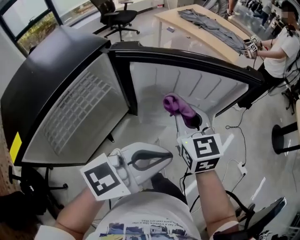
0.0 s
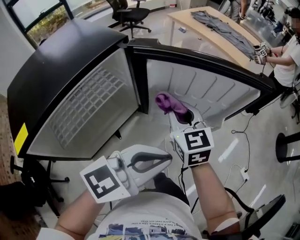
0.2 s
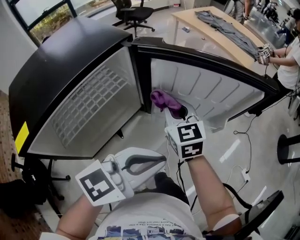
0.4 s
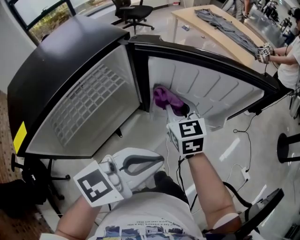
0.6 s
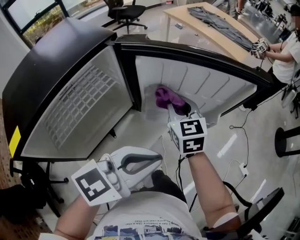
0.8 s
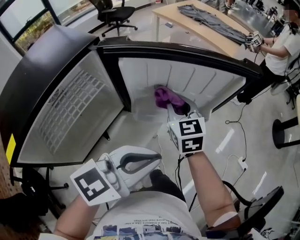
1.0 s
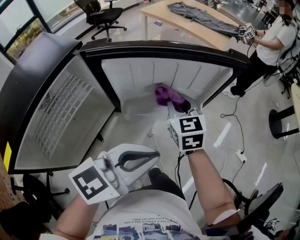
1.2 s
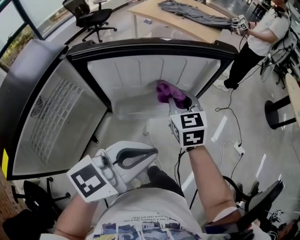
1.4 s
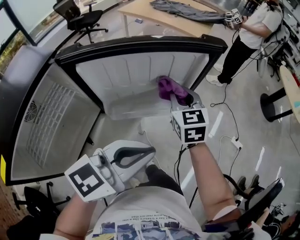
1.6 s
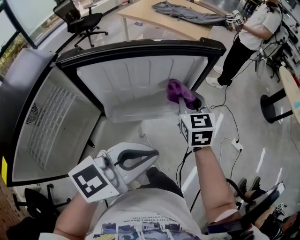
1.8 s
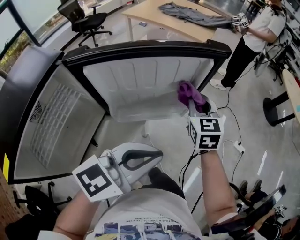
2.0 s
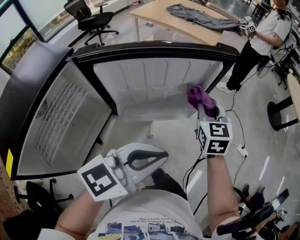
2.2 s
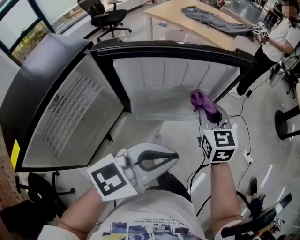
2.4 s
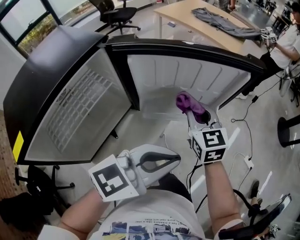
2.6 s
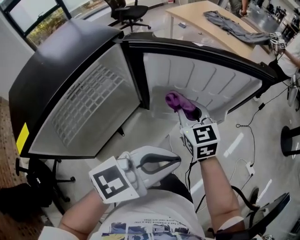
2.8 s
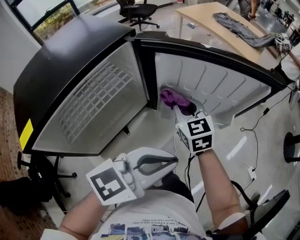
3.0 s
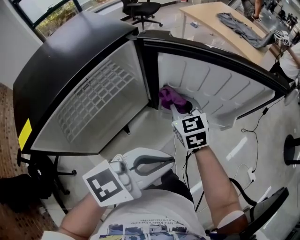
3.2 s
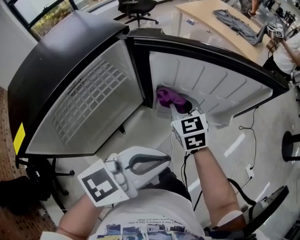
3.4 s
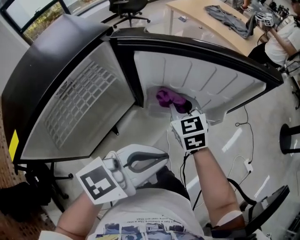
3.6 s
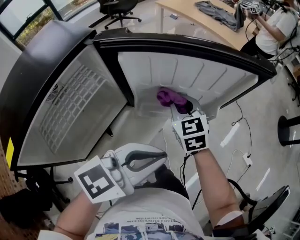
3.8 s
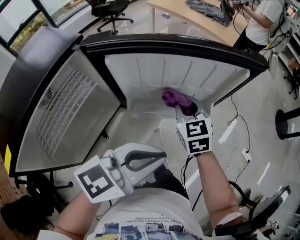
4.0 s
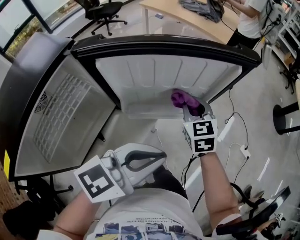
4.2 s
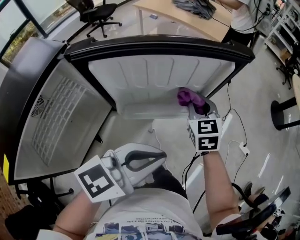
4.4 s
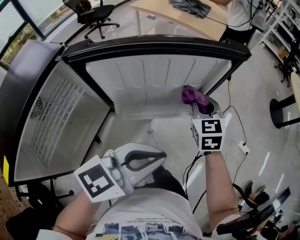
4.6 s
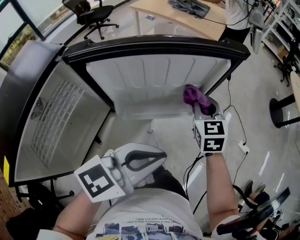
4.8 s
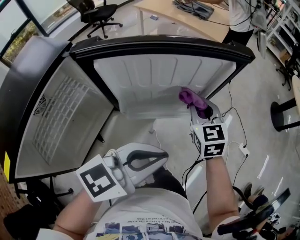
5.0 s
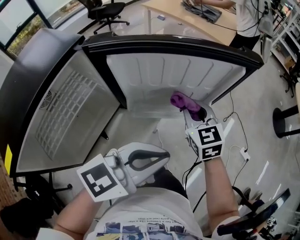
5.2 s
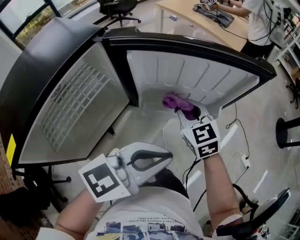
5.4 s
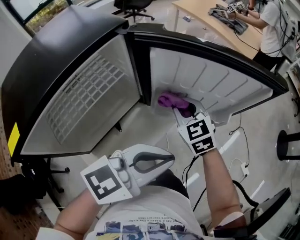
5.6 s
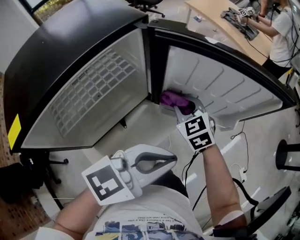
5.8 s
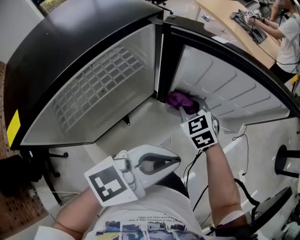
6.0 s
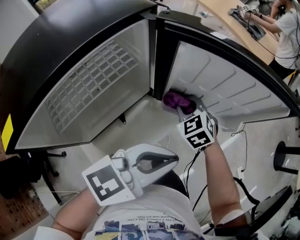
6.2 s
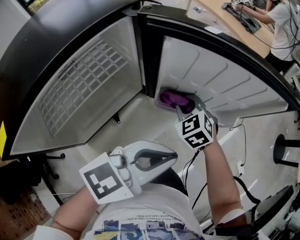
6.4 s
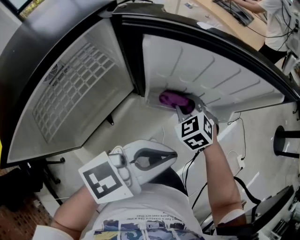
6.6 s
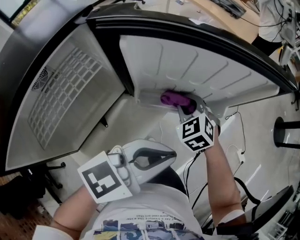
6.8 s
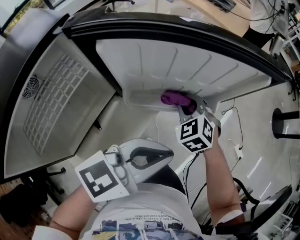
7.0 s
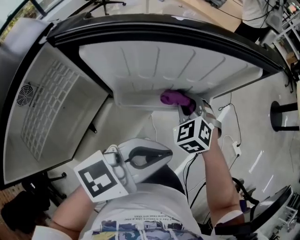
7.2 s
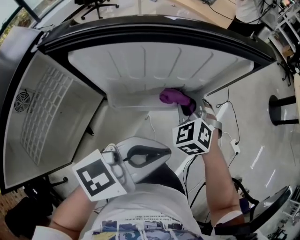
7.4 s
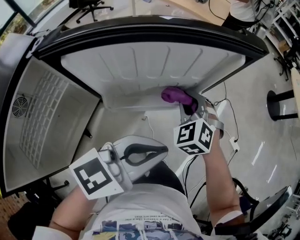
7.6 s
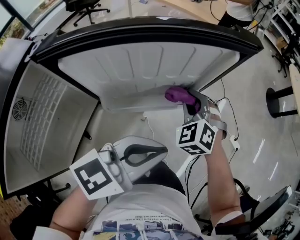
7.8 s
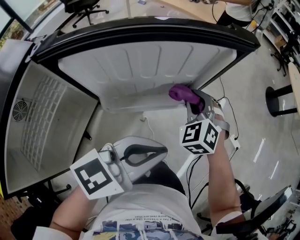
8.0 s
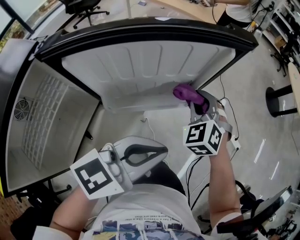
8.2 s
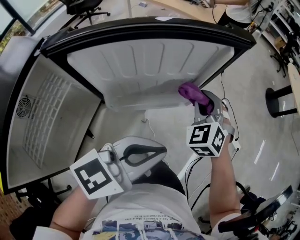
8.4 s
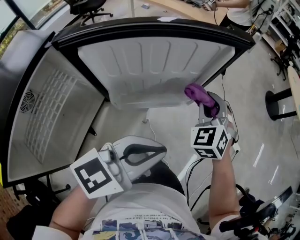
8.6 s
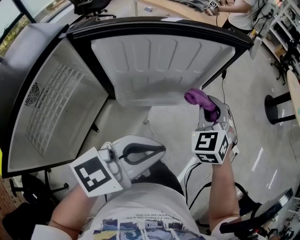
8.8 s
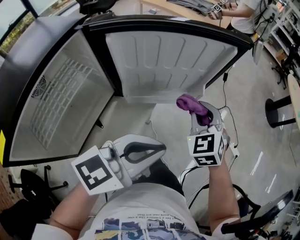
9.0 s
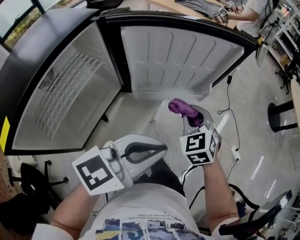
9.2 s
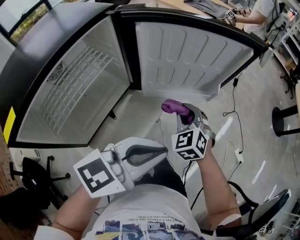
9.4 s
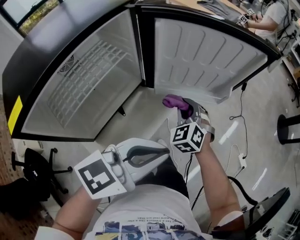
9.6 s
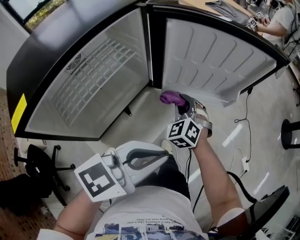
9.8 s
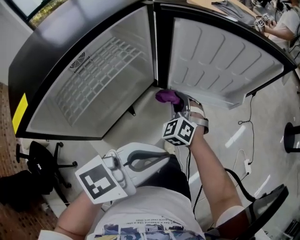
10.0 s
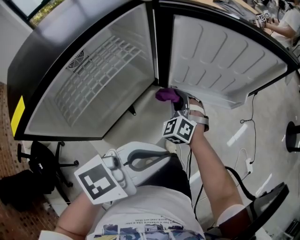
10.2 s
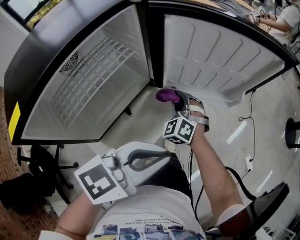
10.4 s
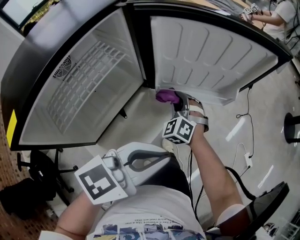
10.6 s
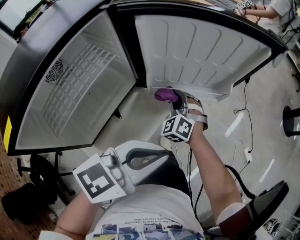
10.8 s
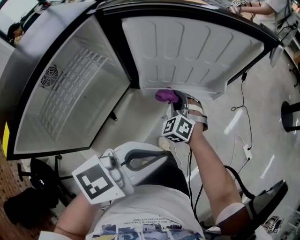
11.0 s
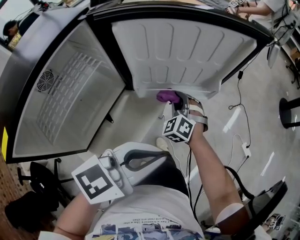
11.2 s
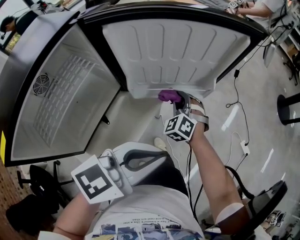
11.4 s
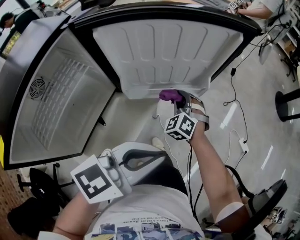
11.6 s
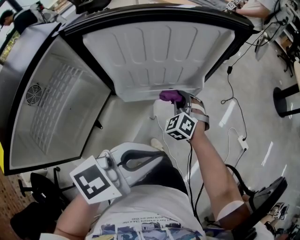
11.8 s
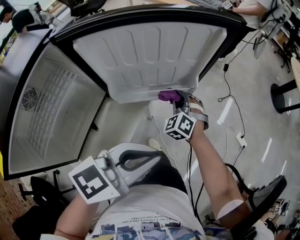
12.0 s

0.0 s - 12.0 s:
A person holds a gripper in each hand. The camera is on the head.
0.0 s - 1.6 s: The right gripper heads to the right, forward and downward, covering about 15 cm.
1.6 s - 3.0 s: The right gripper goes about 20 cm to the left and backward, and changes its angle by about 30 degrees. Meanwhile the left gripper moves to the left, about 5 cm.
3.0 s - 4.4 s: The right gripper is displaced to the right by about 20 cm, and changes its angle by approximately 30 degrees; the left gripper shifts about 5 cm to the right.
4.4 s - 6.0 s: The right gripper moves some 25 cm, and changes its angle by roughly 40 degrees. The left gripper ends up some 10 cm from where it was.
6.0 s - 7.6 s: The left gripper changes place by about 10 cm. Meanwhile the right gripper moves approximately 20 cm, and changes its angle by about 30 degrees.
7.6 s - 9.0 s: The left gripper is displaced backward by roughly 10 cm; the right gripper heads backward, upward and to the right, covering some 10 cm.
9.0 s - 10.4 s: The left gripper shifts some 5 cm to the left, while the right gripper is displaced to the left and downward by some 25 cm, and changes its angle by some 30 degrees.
10.4 s - 12.0 s: The right gripper travels to the right and forward by roughly 20 cm, while the left gripper shifts about 10 cm to the right and forward.

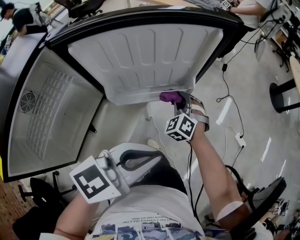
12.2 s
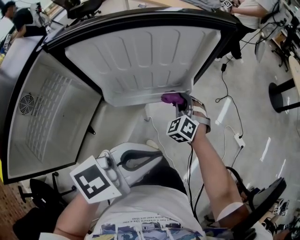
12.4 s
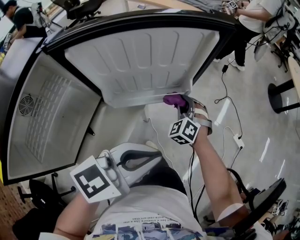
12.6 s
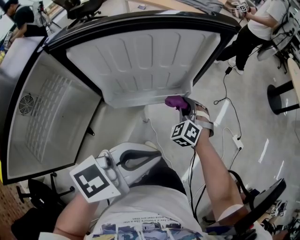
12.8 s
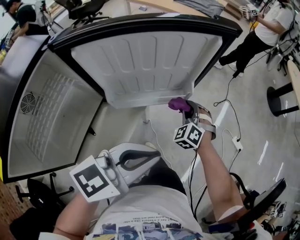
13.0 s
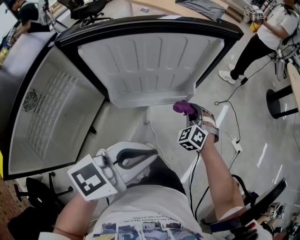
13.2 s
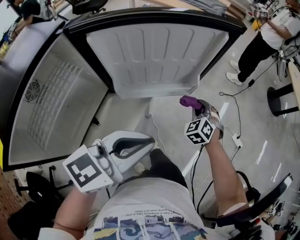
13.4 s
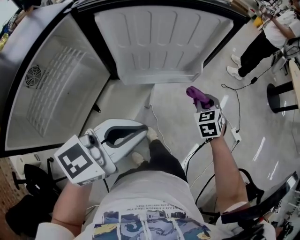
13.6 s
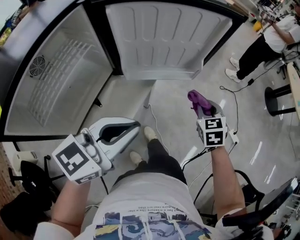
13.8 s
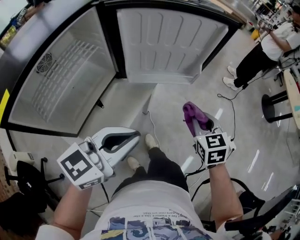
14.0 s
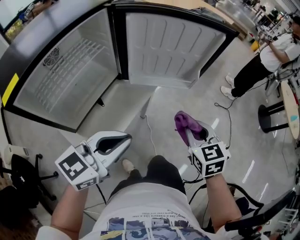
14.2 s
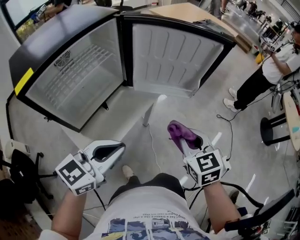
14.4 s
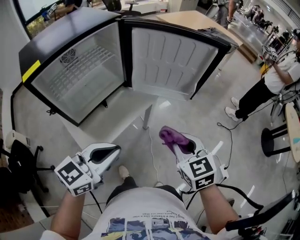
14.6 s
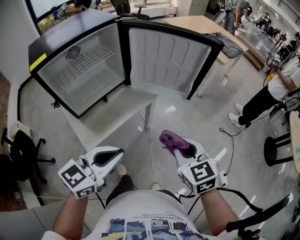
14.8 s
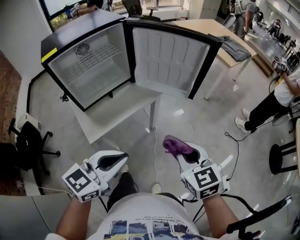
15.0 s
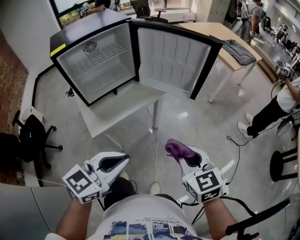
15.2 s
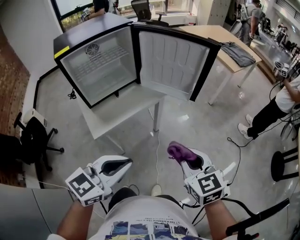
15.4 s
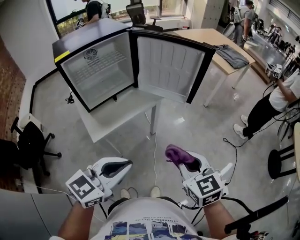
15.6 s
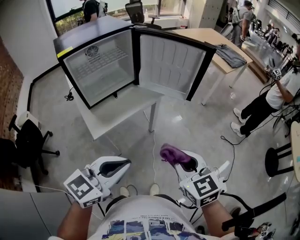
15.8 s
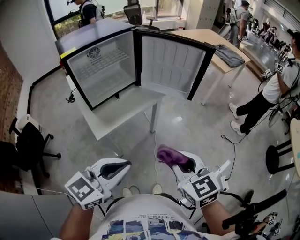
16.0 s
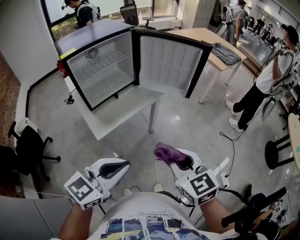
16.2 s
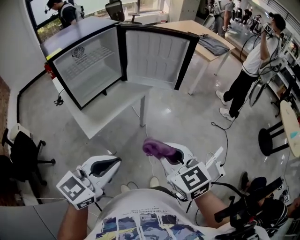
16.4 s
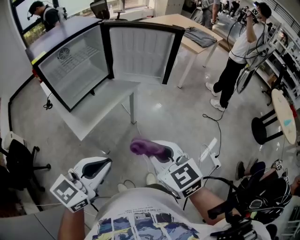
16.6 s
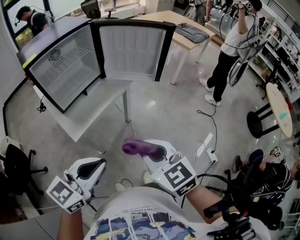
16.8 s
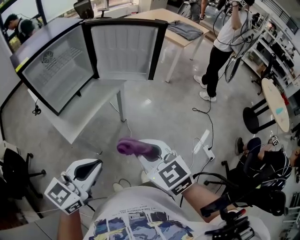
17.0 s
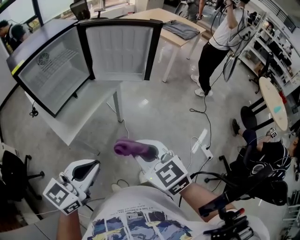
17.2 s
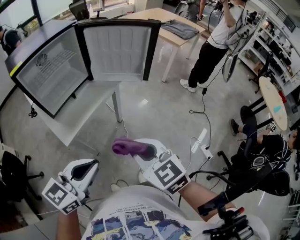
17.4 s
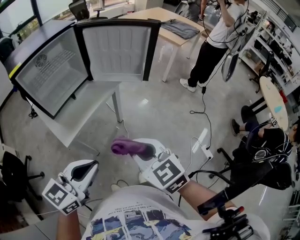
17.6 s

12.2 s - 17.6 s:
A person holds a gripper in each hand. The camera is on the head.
12.2 s - 13.6 s: The right gripper shifts about 10 cm to the right, and changes its angle by approximately 30 degrees, while the left gripper heads to the left, covering roughly 5 cm.
13.6 s - 15.0 s: The left gripper moves approximately 20 cm, and swivels some 30 degrees. Meanwhile the right gripper changes place by roughly 30 cm, and turns by approximately 50 degrees.
15.0 s - 16.2 s: The left gripper travels backward by about 10 cm; the right gripper goes roughly 10 cm backward and to the left.
16.2 s - 17.6 s: The grippers stay close to where they were, moving slightly.

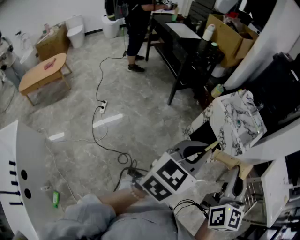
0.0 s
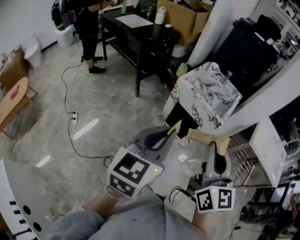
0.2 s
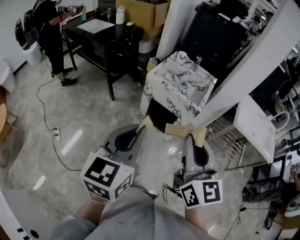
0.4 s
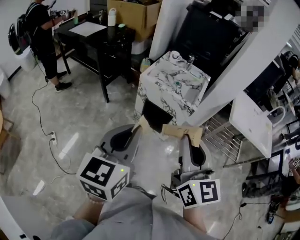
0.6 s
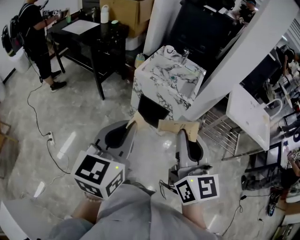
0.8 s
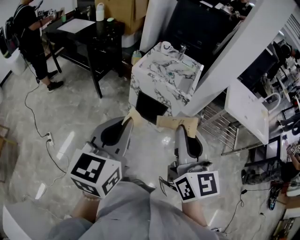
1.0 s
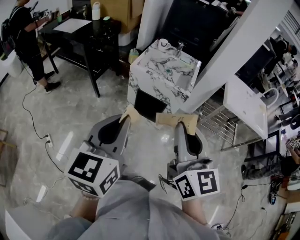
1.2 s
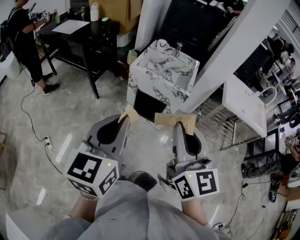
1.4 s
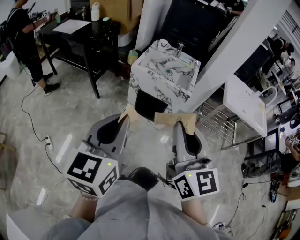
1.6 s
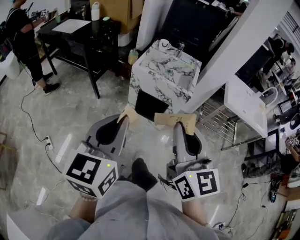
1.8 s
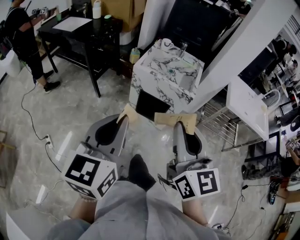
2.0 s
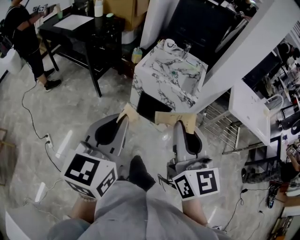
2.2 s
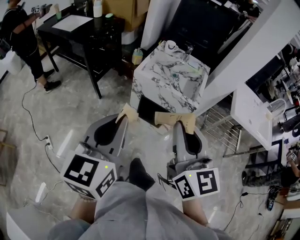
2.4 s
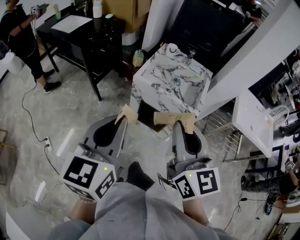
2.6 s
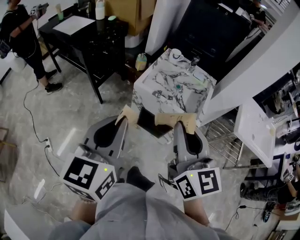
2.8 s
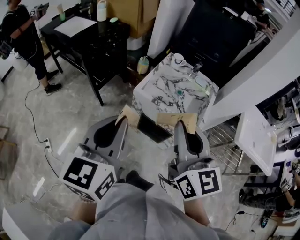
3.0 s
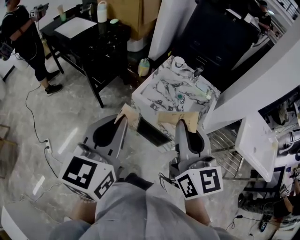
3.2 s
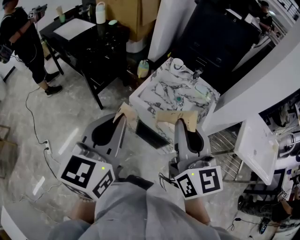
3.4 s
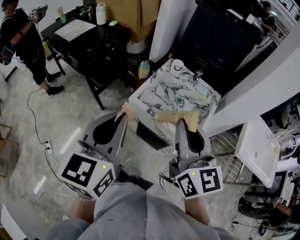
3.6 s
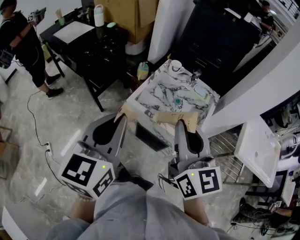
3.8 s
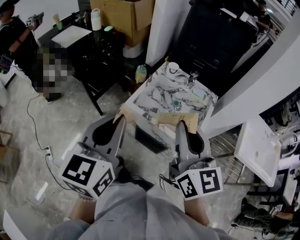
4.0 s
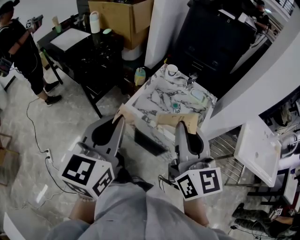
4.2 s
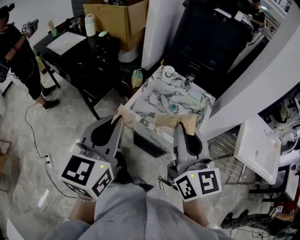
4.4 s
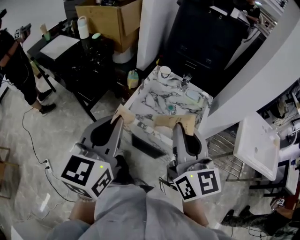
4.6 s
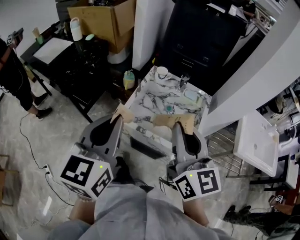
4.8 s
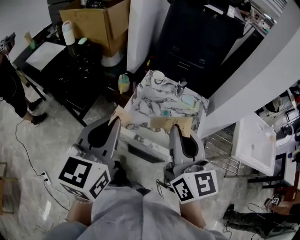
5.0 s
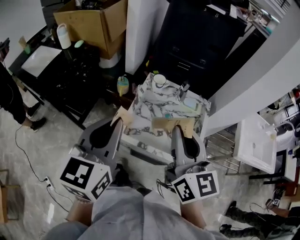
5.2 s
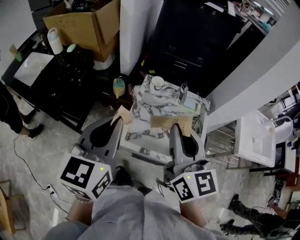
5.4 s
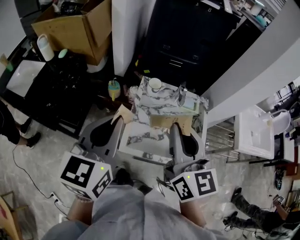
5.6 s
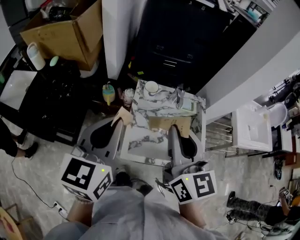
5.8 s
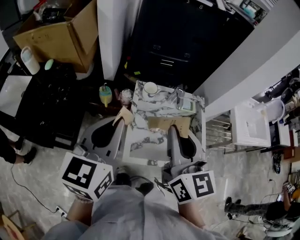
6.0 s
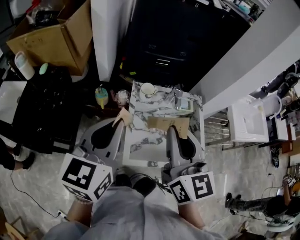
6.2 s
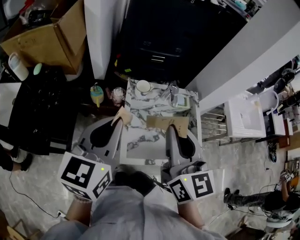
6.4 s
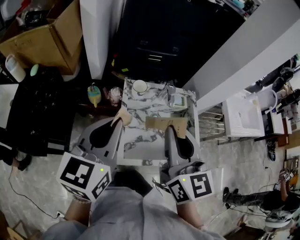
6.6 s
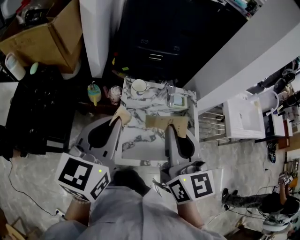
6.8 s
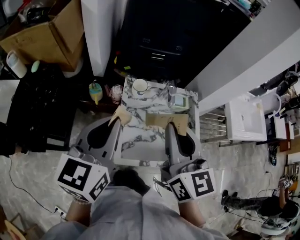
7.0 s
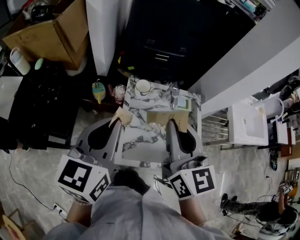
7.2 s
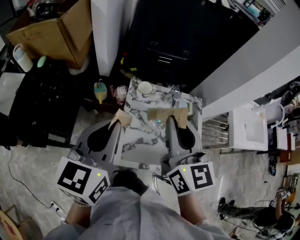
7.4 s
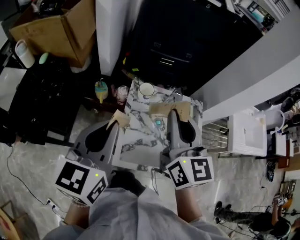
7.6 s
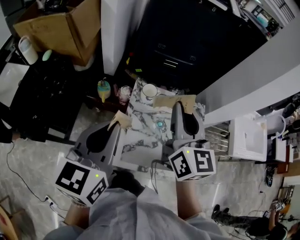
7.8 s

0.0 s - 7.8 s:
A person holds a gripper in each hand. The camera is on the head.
0.0 s - 1.6 s: The right gripper is displaced to the left by roughly 5 cm. The left gripper is displaced to the left and forward by roughly 10 cm.
1.6 s - 3.2 s: Both grippers move forward, about 30 cm.
3.2 s - 4.6 s: The right gripper shifts approximately 10 cm forward and to the right. The left gripper moves forward, about 10 cm.
4.6 s - 6.2 s: The left gripper shifts by roughly 30 cm, and swivels approximately 30 degrees. The right gripper changes place by some 25 cm, and rotates approximately 30 degrees.
6.2 s - 7.8 s: The right gripper is displaced forward by approximately 10 cm.
